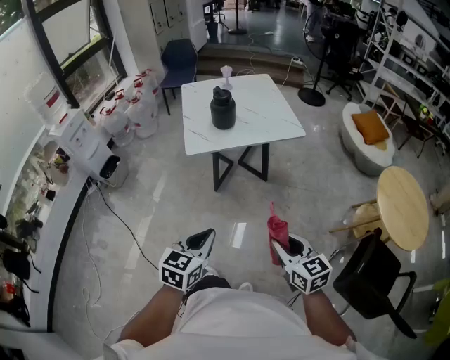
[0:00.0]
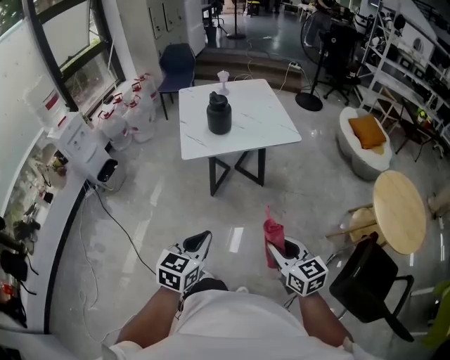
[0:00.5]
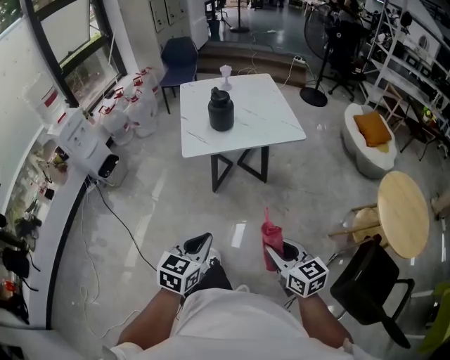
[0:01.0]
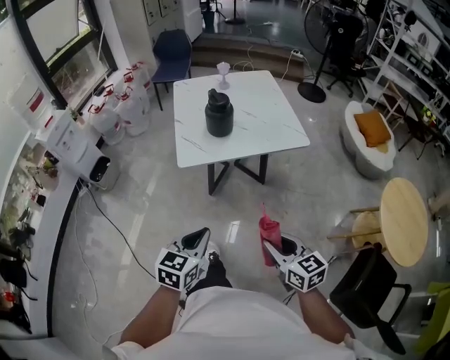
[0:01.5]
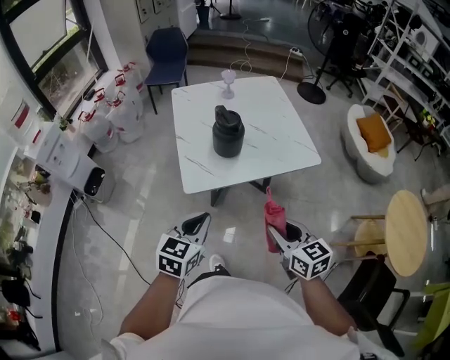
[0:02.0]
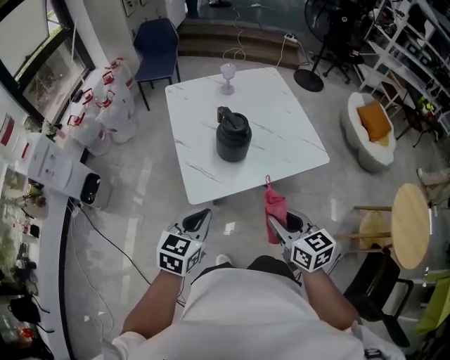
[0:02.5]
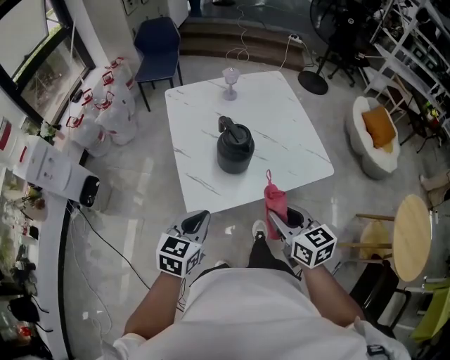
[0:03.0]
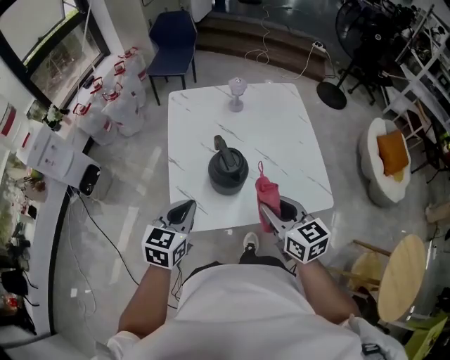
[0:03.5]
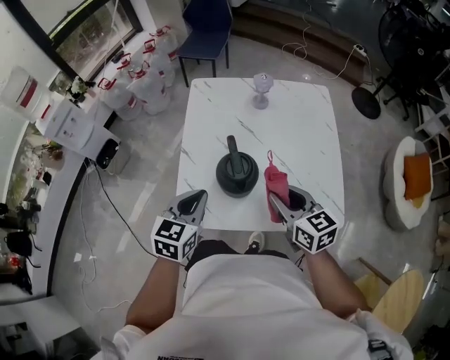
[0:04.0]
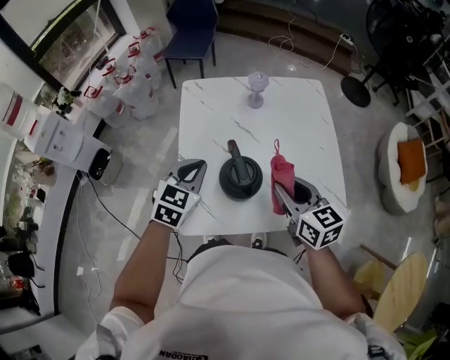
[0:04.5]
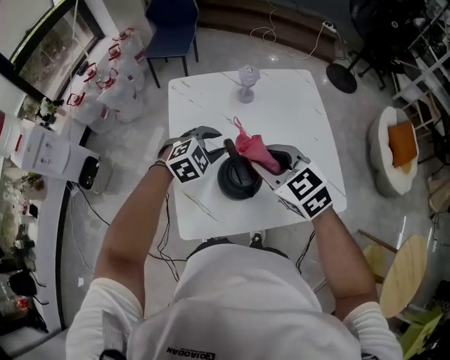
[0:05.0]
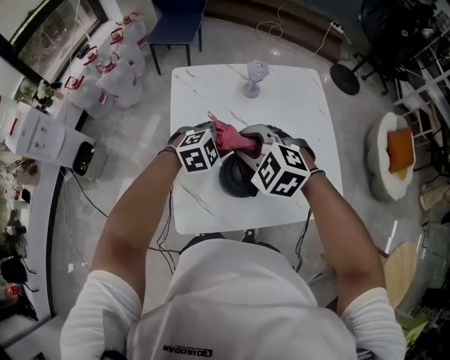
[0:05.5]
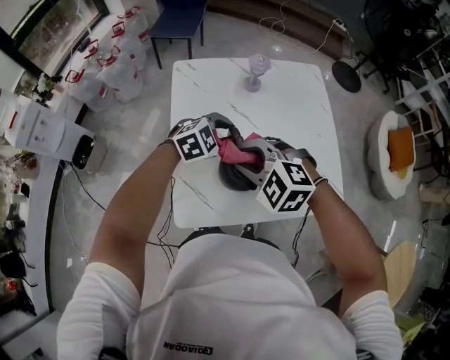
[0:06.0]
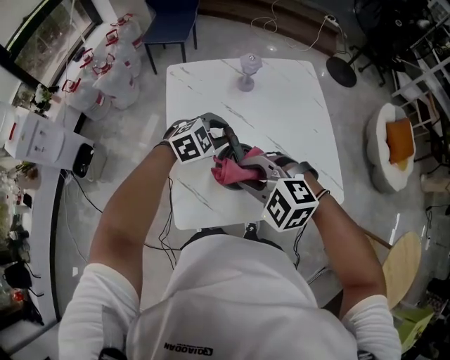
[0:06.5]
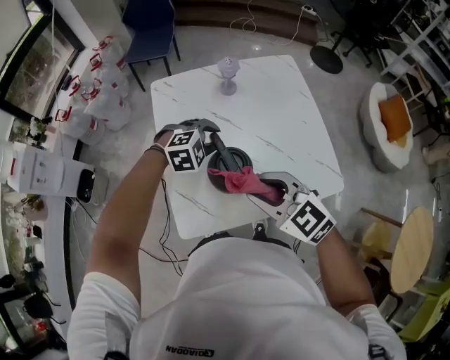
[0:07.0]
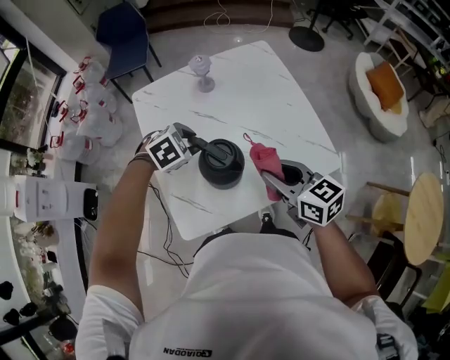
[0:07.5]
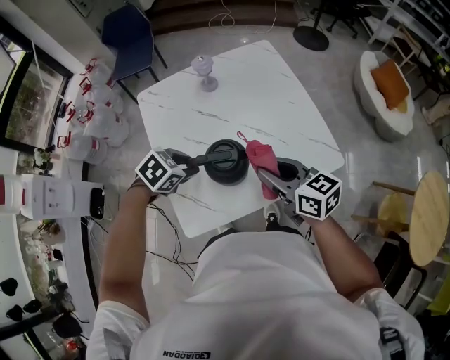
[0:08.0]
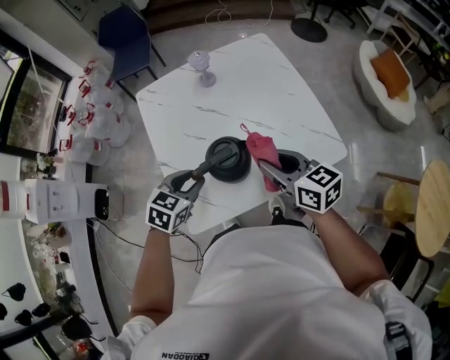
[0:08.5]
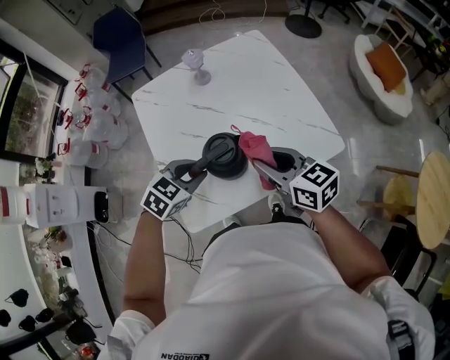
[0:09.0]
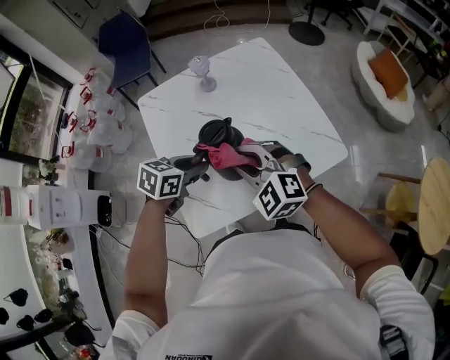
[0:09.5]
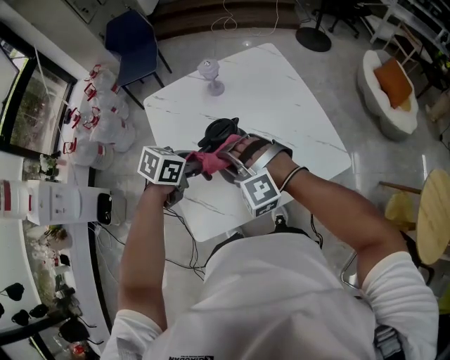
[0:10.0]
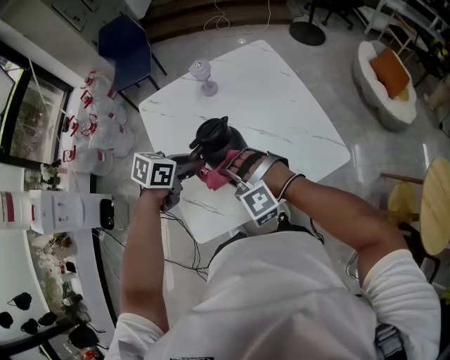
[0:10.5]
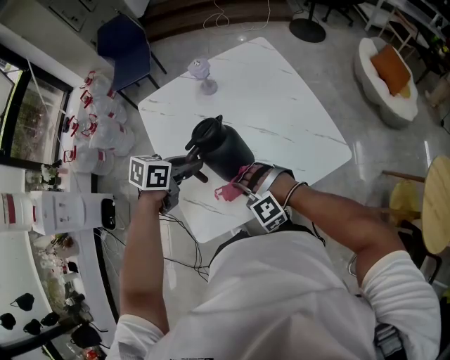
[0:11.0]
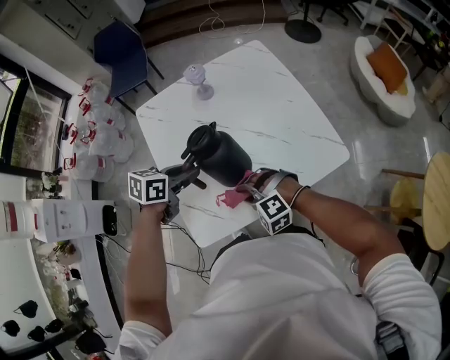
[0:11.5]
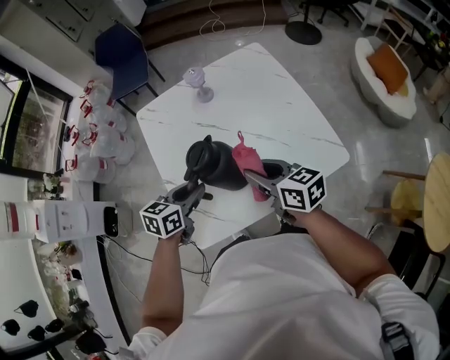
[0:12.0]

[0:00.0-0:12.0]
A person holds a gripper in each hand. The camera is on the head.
0:00.0 to 0:02.0: Both grippers move forward, roughly 30 cm.
0:02.0 to 0:04.0: The grippers both shift forward by roughly 35 cm.
0:04.0 to 0:06.0: The right gripper goes roughly 15 cm to the left, and rolls counterclockwise, seen from behind, by some 60 degrees. Meanwhile the left gripper shifts roughly 20 cm forward and downward, turns by roughly 60 degrees, and opens up.
0:06.0 to 0:08.0: The right gripper is displaced to the right by approximately 15 cm, and rolls clockwise, seen from behind, by roughly 70 degrees, while the left gripper goes approximately 10 cm backward, and swivels about 30 degrees.
0:08.0 to 0:10.0: The left gripper changes its angle by about 30 degrees. Meanwhile the right gripper is displaced to the left by some 15 cm, and rotates around the line of its fingers by about 100 degrees, counterclockwise from behind.
0:10.0 to 0:12.0: The left gripper rotates roughly 20 degrees. Meanwhile the right gripper is displaced to the right by about 10 cm, goes downward and returns, some 10 cm each way, and rolls clockwise, seen from behind, by roughly 100 degrees.

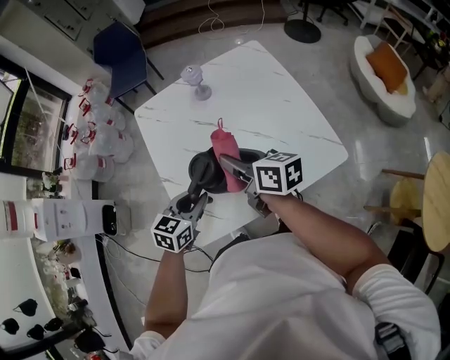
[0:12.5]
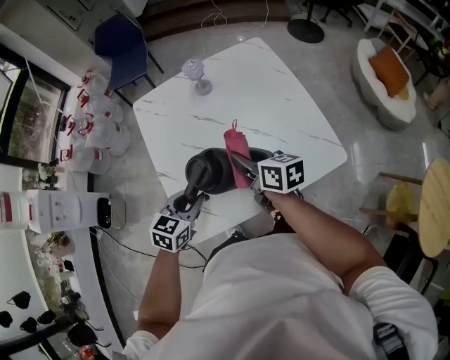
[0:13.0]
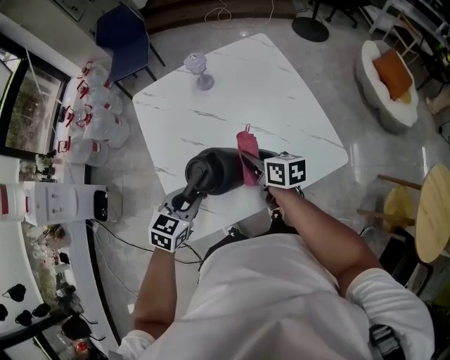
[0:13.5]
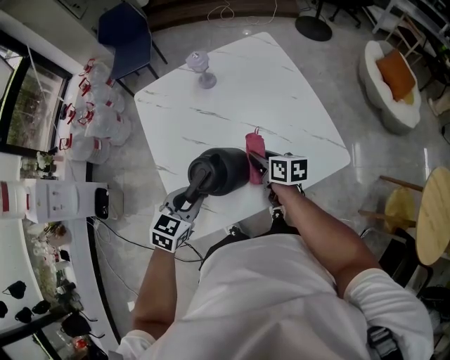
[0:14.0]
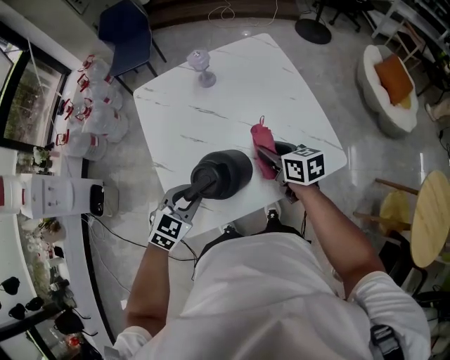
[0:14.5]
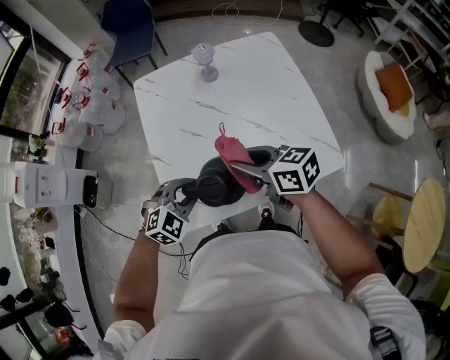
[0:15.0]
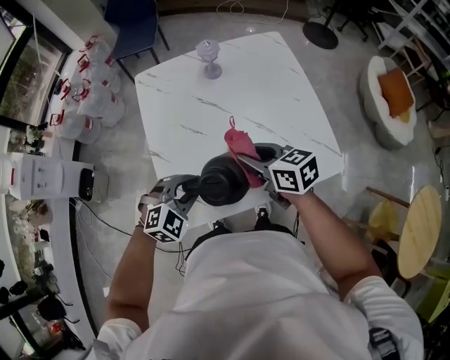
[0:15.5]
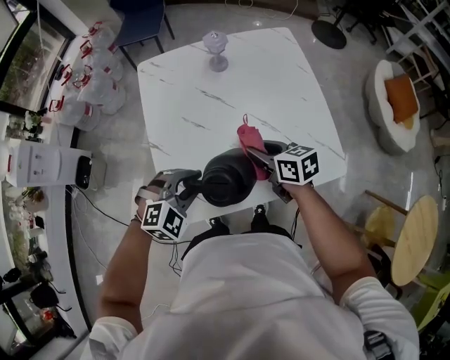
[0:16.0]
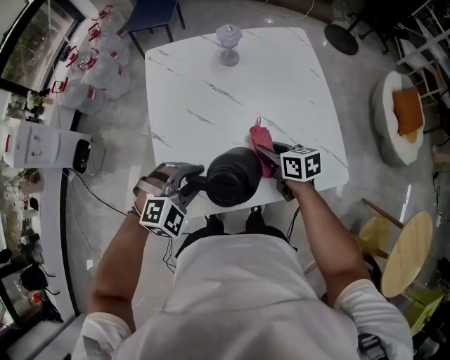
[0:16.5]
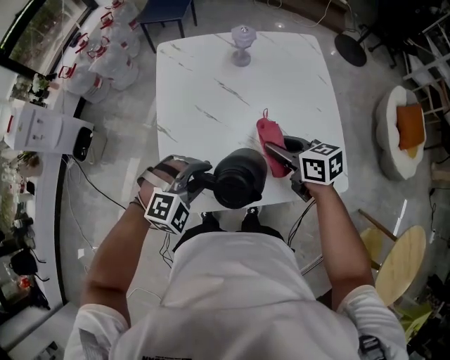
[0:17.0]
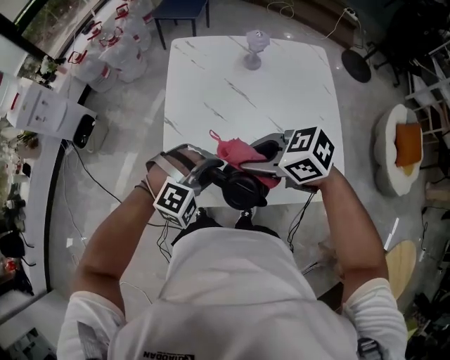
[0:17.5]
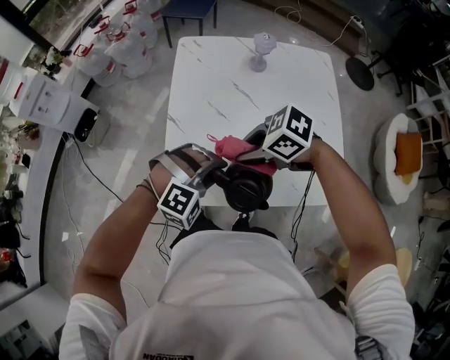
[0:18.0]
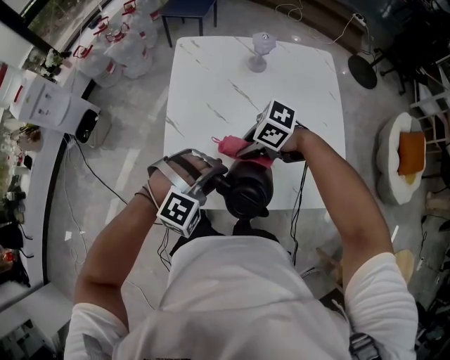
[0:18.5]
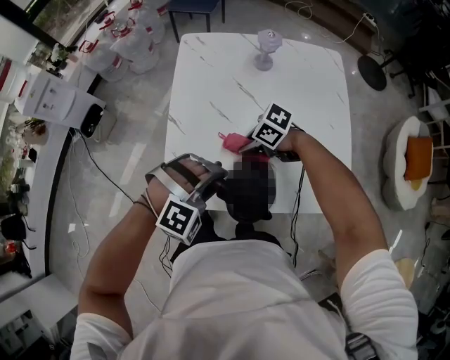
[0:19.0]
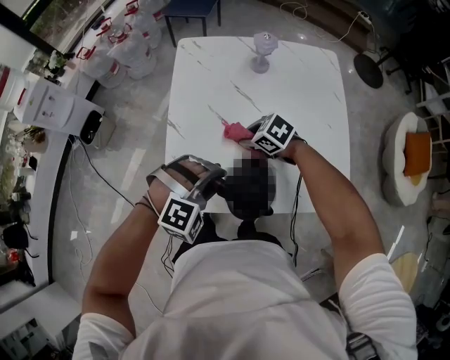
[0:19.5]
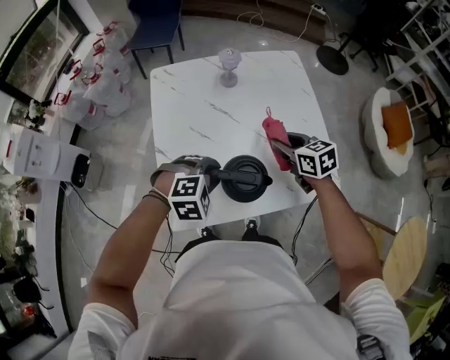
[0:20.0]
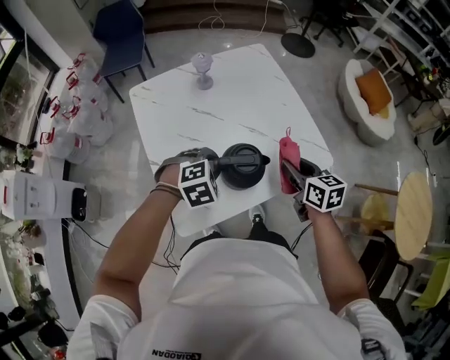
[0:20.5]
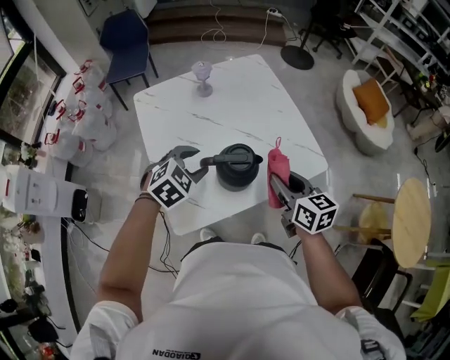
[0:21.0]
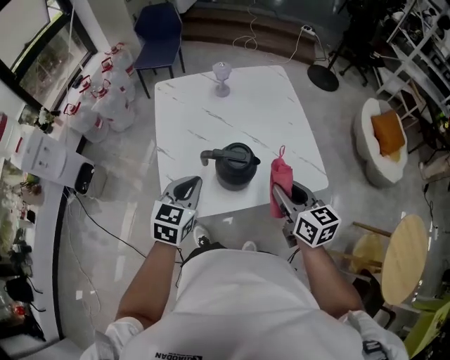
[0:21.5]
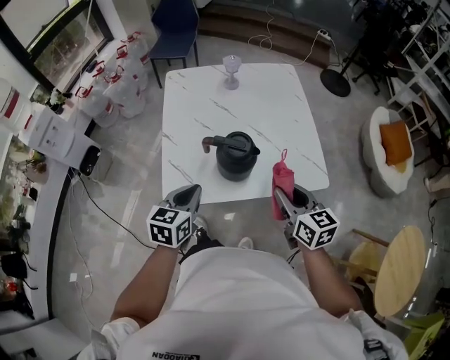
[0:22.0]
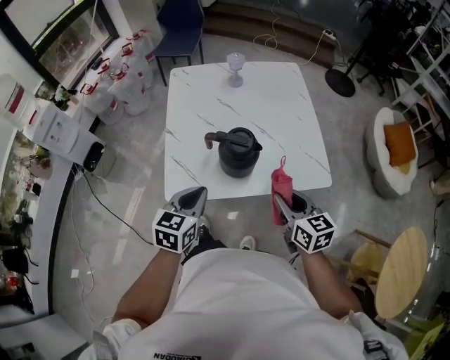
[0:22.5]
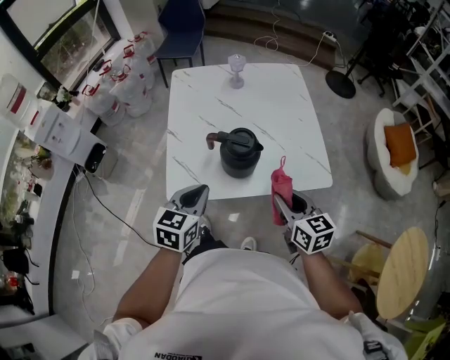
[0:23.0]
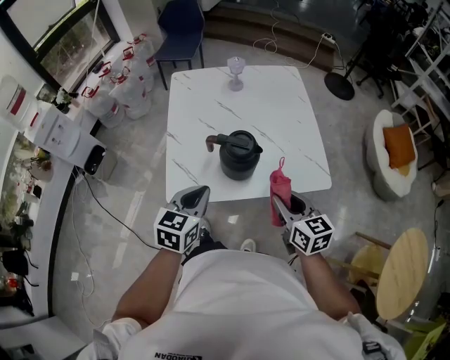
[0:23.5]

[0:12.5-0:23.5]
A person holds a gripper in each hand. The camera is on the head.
0:12.5 to 0:14.5: The right gripper goes some 15 cm downward and to the right, while the left gripper rotates about 20 degrees.
0:14.5 to 0:16.0: The right gripper is displaced to the left by some 5 cm, and moves some 10 cm upward and comes back. Meanwhile the left gripper rotates about 30 degrees.
0:16.0 to 0:18.0: The right gripper moves up and down over approximately 15 cm, changing direction 2 times, and changes its angle by some 60 degrees, while the left gripper swivels approximately 20 degrees.
0:18.0 to 0:20.0: The right gripper goes downward and returns, some 15 cm each way, and changes its angle by about 60 degrees. Meanwhile the left gripper swivels about 20 degrees.
0:20.0 to 0:21.5: The left gripper shifts roughly 10 cm upward and backward, rotates around the line of its fingers by roughly 50 degrees, counterclockwise from behind, and closes up. The right gripper heads backward and upward, covering some 20 cm, and swivels about 20 degrees.
0:21.5 to 0:23.5: Both grippers travel together backward, some 5 cm.

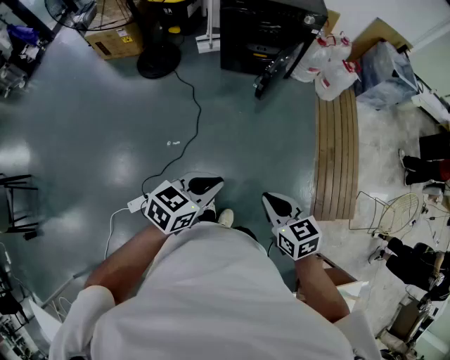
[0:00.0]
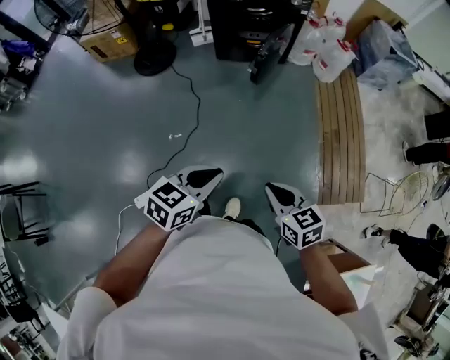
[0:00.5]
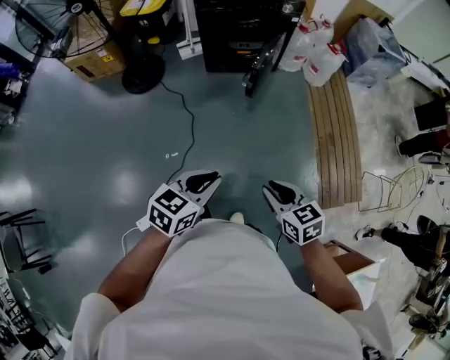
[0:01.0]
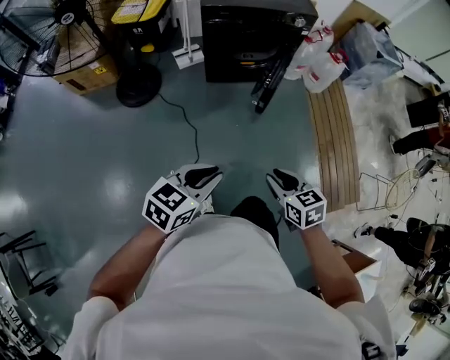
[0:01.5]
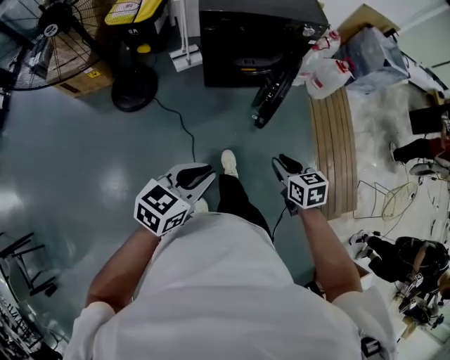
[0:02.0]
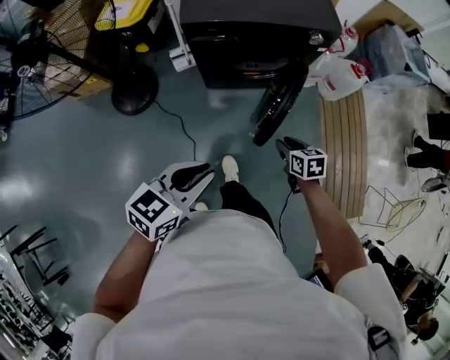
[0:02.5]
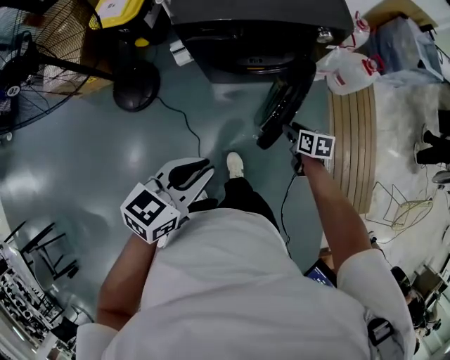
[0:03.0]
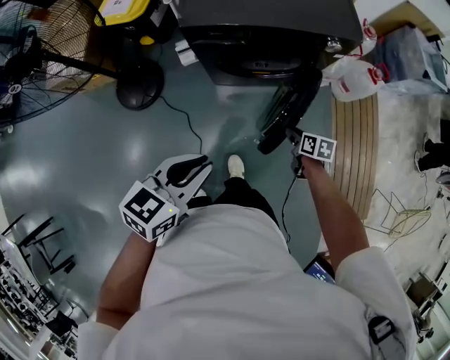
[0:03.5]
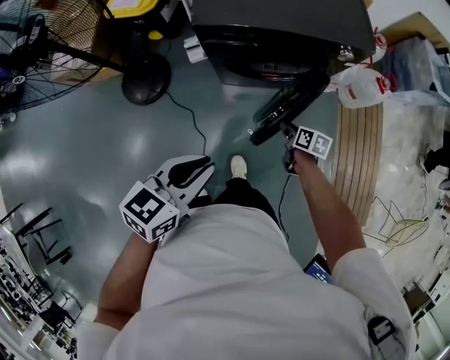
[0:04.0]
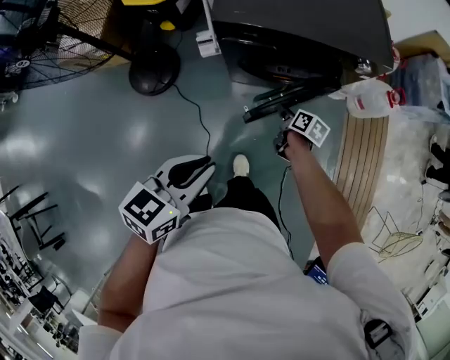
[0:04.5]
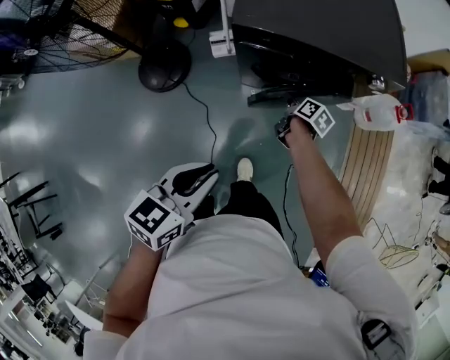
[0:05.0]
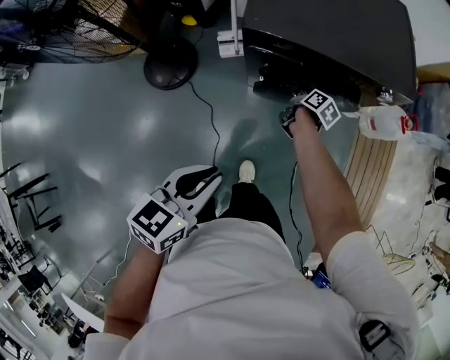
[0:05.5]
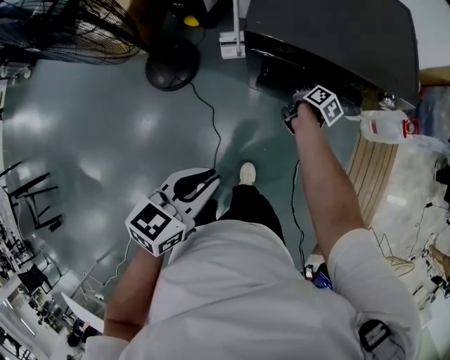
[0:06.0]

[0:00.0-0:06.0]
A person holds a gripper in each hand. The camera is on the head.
0:00.0 to 0:02.0: The left gripper shifts about 30 cm forward and to the left. Meanwhile the right gripper shifts about 35 cm forward, and opens.
0:02.0 to 0:04.0: The right gripper shifts approximately 40 cm forward and downward, and swivels about 30 degrees. The left gripper heads forward, covering roughly 25 cm.
0:04.0 to 0:06.0: The right gripper moves forward and to the left, about 25 cm, and changes its angle by roughly 20 degrees; the left gripper heads to the left, covering about 5 cm.
